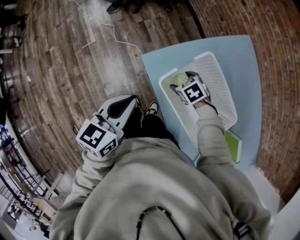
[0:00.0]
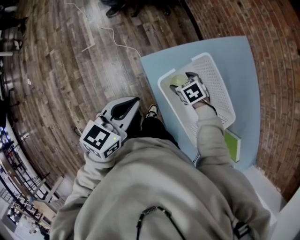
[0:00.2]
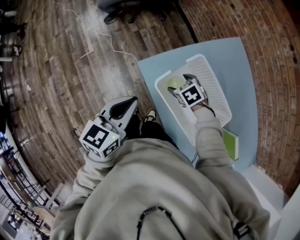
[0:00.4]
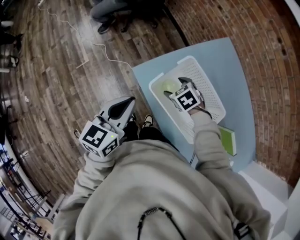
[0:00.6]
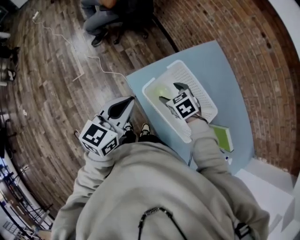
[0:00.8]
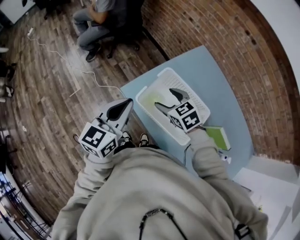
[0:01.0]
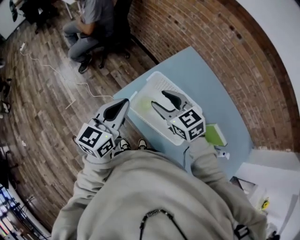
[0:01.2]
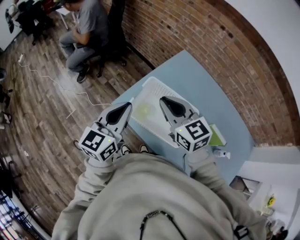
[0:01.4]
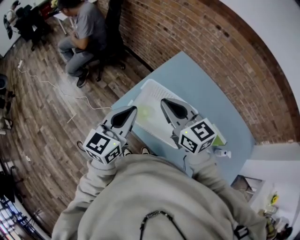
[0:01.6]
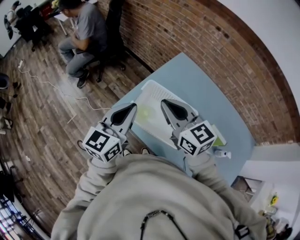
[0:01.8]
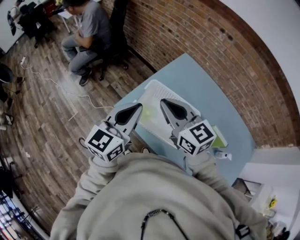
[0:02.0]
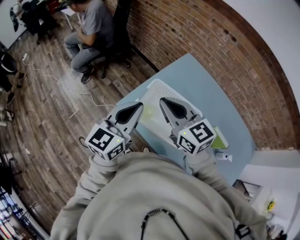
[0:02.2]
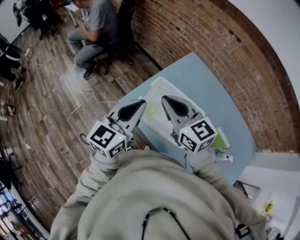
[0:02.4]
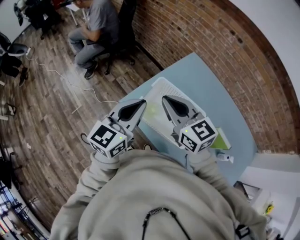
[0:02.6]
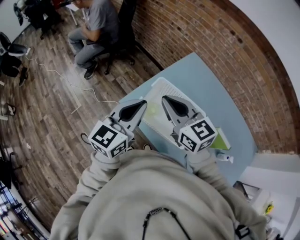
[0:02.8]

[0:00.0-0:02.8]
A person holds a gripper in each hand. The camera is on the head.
0:00.0 to 0:01.4: The left gripper travels upward and to the right by approximately 20 cm, and turns by some 30 degrees; the right gripper goes roughly 35 cm upward, tips its fingers upward by about 50 degrees, and closes its fingers.
0:01.4 to 0:02.8: The grippers stay close to where they were, moving slightly.

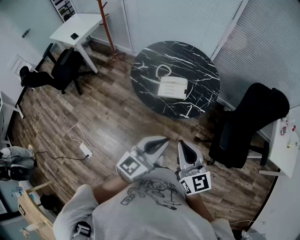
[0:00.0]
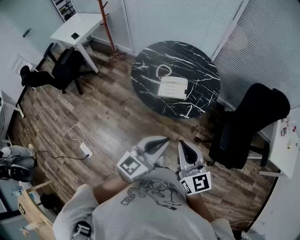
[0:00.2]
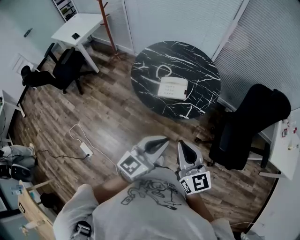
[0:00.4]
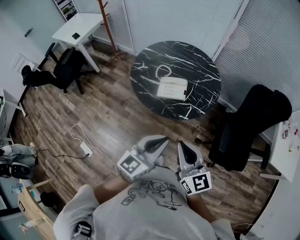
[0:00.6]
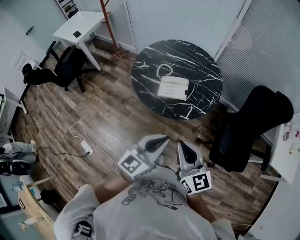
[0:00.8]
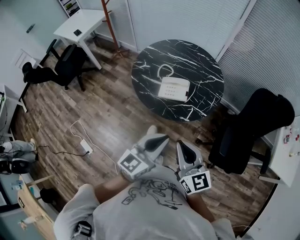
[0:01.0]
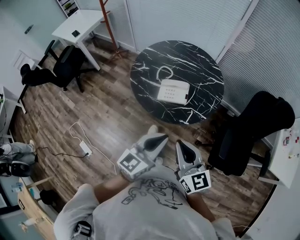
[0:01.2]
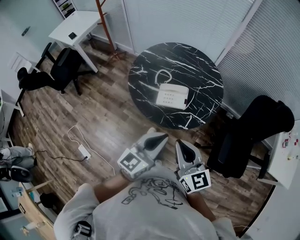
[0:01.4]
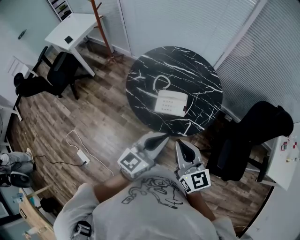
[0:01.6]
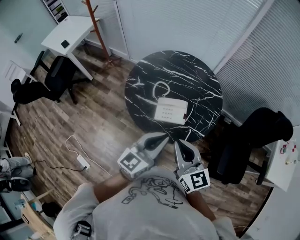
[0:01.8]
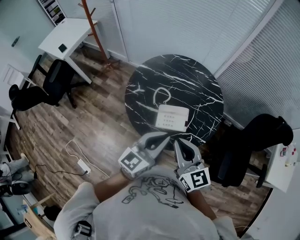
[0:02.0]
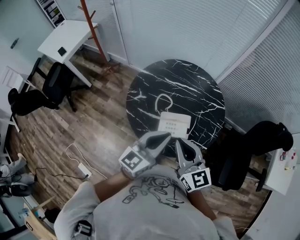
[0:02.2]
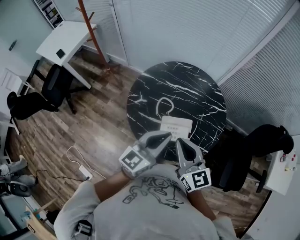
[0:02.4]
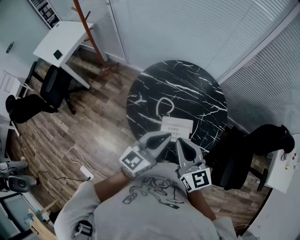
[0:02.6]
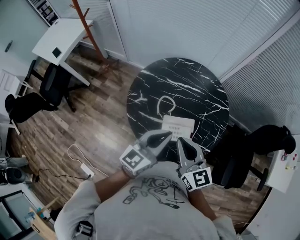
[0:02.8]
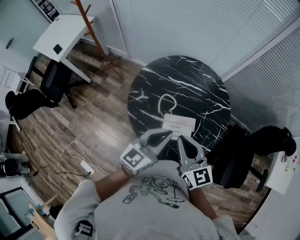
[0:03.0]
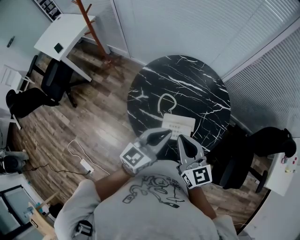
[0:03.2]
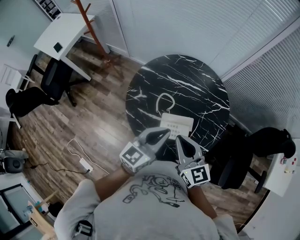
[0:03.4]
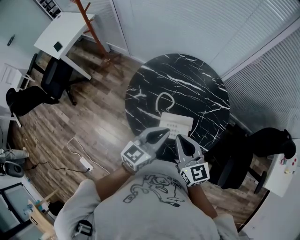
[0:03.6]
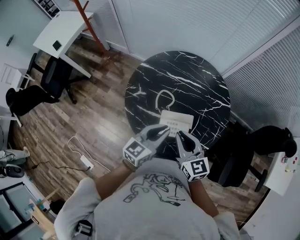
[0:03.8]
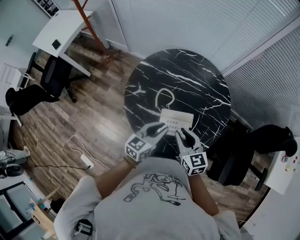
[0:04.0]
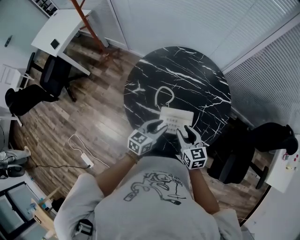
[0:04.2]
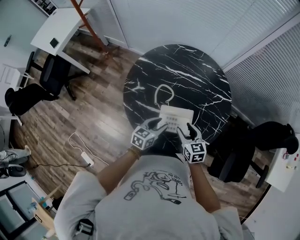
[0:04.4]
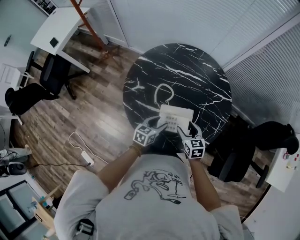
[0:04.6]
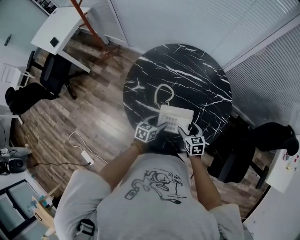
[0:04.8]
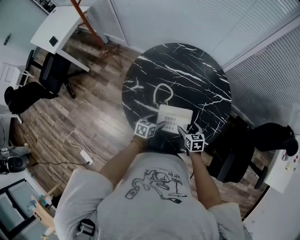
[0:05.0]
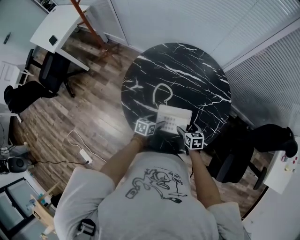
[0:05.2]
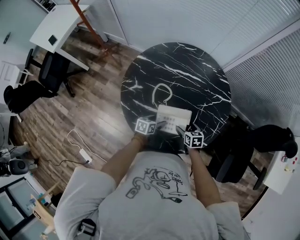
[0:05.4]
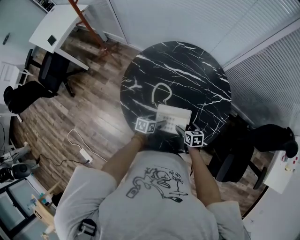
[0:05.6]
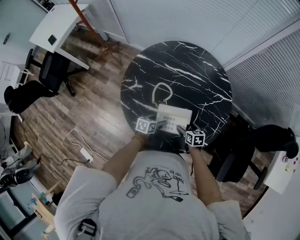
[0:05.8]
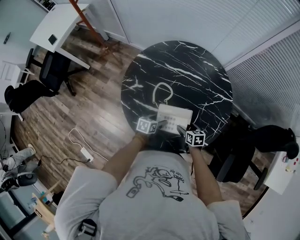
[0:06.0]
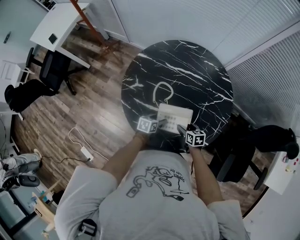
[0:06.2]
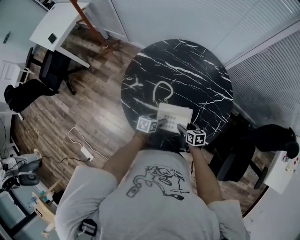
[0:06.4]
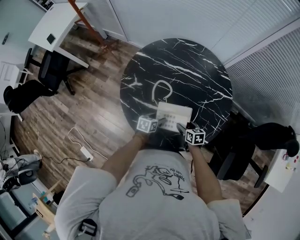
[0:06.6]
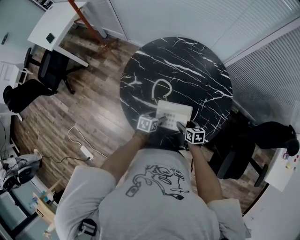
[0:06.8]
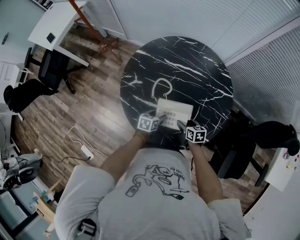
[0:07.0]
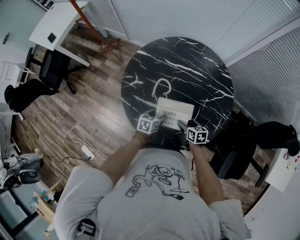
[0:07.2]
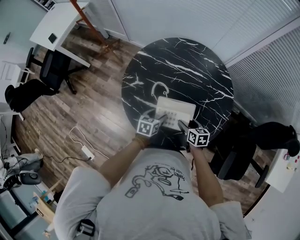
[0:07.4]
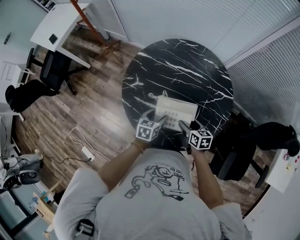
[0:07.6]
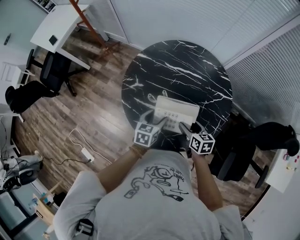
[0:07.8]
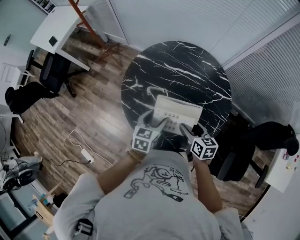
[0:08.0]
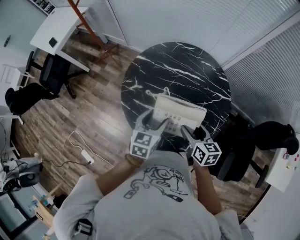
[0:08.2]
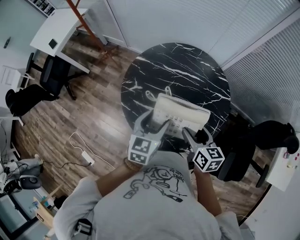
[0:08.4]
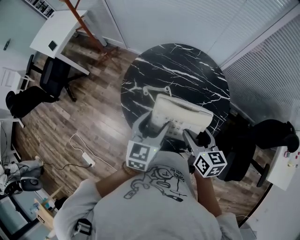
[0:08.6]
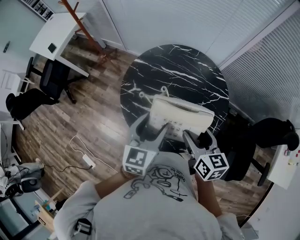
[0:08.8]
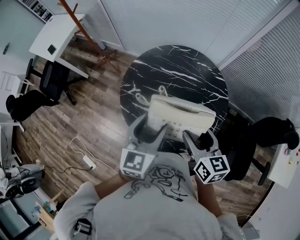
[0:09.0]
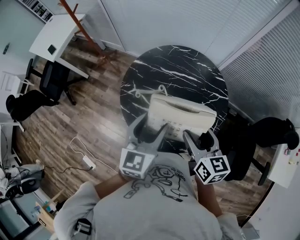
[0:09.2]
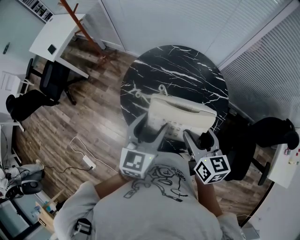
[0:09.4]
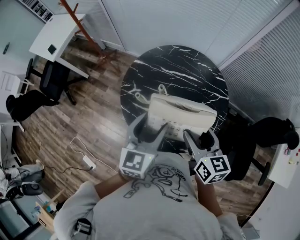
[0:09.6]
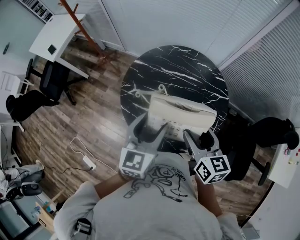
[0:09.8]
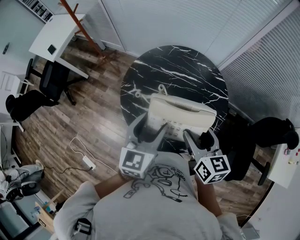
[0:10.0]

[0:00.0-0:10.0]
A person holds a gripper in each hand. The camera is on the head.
0:00.0 to 0:01.4: Both grippers travel together forward, about 10 cm.
0:01.4 to 0:02.8: The right gripper goes approximately 30 cm forward and to the left; the left gripper heads forward, covering about 30 cm.
0:02.8 to 0:04.2: The two grippers go approximately 20 cm downward. The right gripper rotates approximately 20 degrees, and opens up; the left gripper rotates some 20 degrees, and opens up.
0:04.2 to 0:05.8: Both grippers travel together downward, roughly 20 cm. The left gripper changes its angle by some 30 degrees, and opens its fingers, while the right gripper turns by approximately 30 degrees, and opens its fingers.
0:05.8 to 0:07.2: The grippers move only a little.
0:07.2 to 0:08.6: Both grippers move upward, some 30 cm. The right gripper changes its angle by roughly 20 degrees; the left gripper turns by about 30 degrees.
0:08.6 to 0:10.0: The grippers both shift upward by some 5 cm.

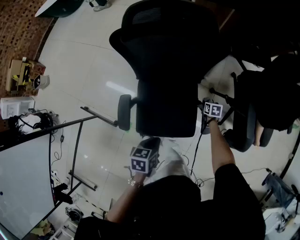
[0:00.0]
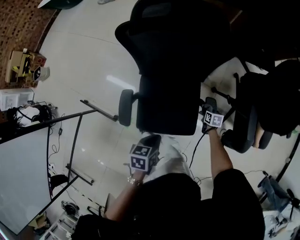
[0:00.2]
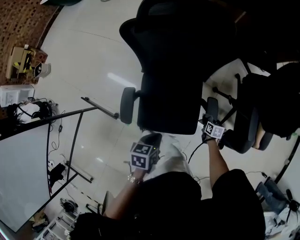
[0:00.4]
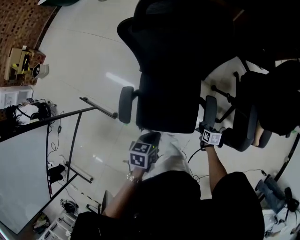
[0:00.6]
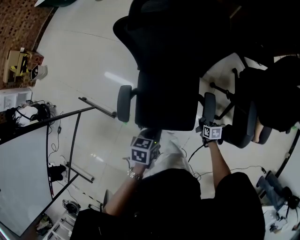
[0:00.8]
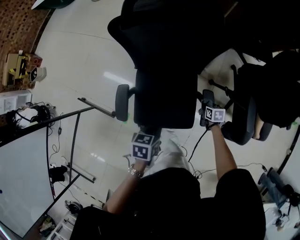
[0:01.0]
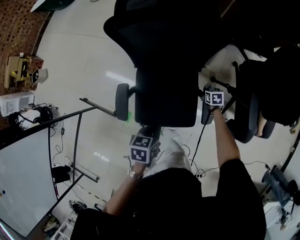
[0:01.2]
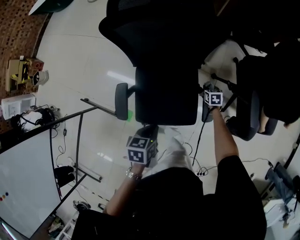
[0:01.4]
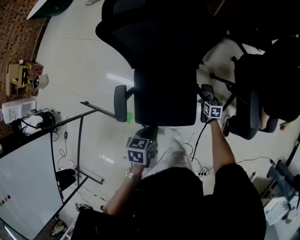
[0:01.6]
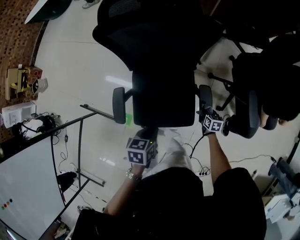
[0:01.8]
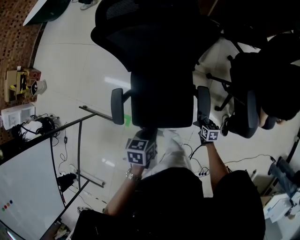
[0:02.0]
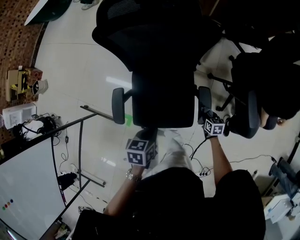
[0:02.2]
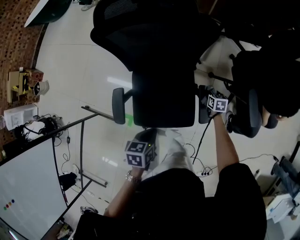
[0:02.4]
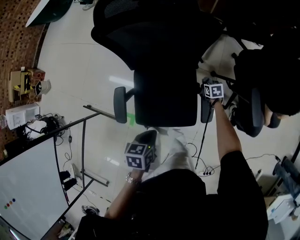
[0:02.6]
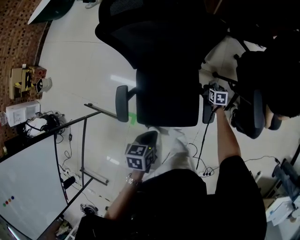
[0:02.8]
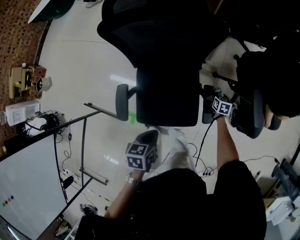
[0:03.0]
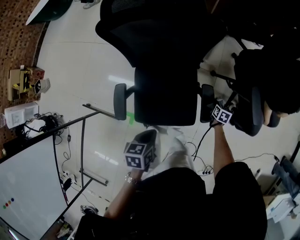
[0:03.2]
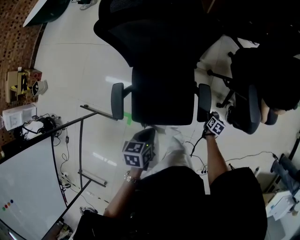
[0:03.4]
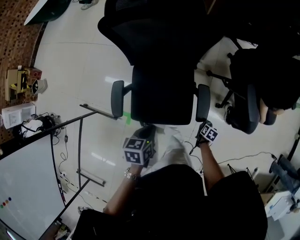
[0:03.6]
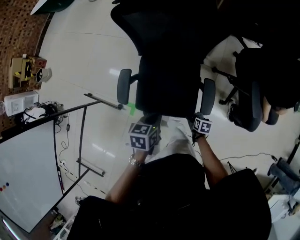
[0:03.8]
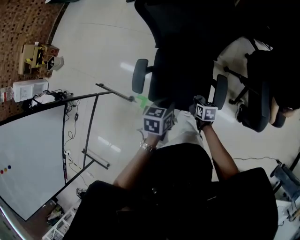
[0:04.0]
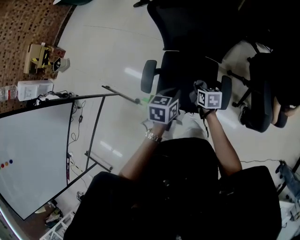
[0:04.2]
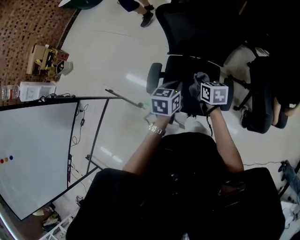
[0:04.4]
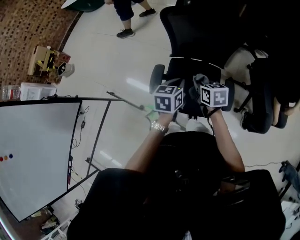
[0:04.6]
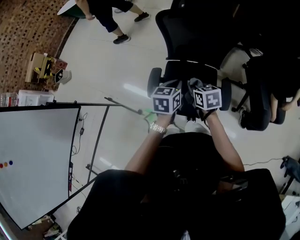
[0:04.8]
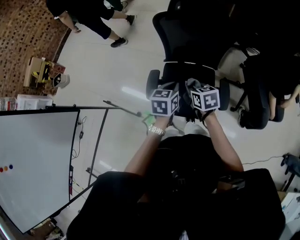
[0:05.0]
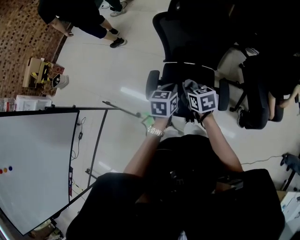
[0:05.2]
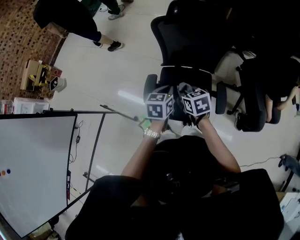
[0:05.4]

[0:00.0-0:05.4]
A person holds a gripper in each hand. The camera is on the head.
0:00.0 to 0:01.4: The right gripper travels backward and back again, approximately 15 cm each way.
0:01.4 to 0:02.8: The right gripper reaches about 20 cm backward, then returns.
0:02.8 to 0:04.0: The right gripper moves roughly 30 cm.
0:04.0 to 0:05.4: The left gripper goes about 10 cm upward and to the left, while the right gripper heads upward and to the left, covering some 30 cm, and changes its angle by about 20 degrees.

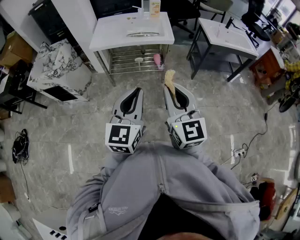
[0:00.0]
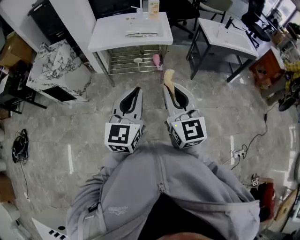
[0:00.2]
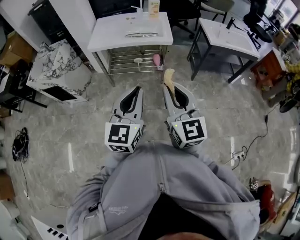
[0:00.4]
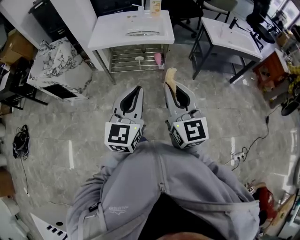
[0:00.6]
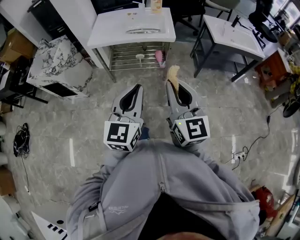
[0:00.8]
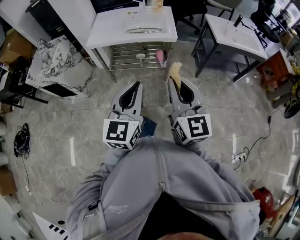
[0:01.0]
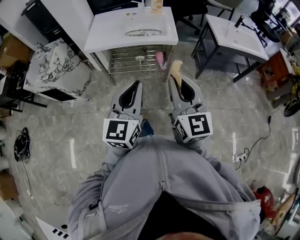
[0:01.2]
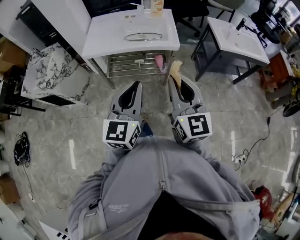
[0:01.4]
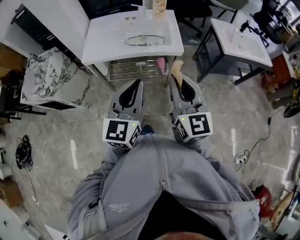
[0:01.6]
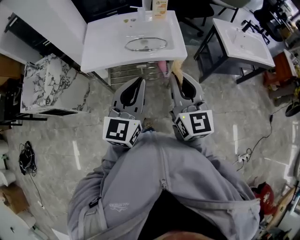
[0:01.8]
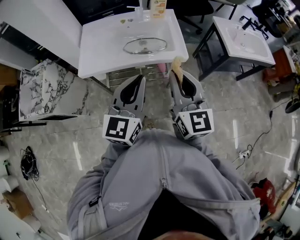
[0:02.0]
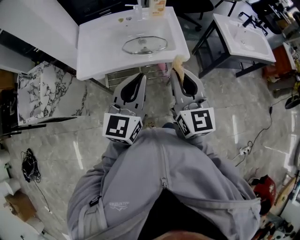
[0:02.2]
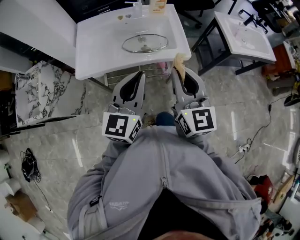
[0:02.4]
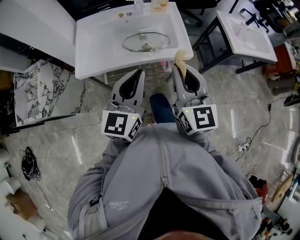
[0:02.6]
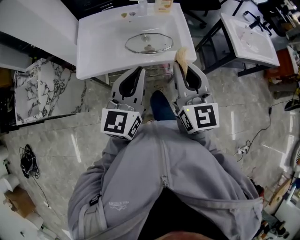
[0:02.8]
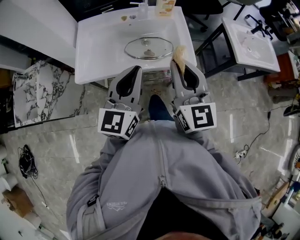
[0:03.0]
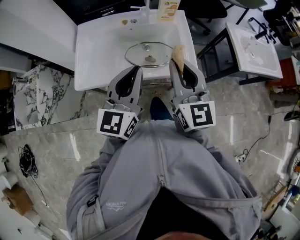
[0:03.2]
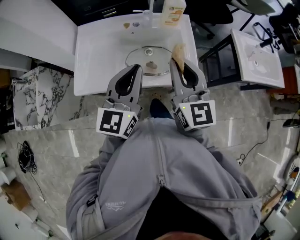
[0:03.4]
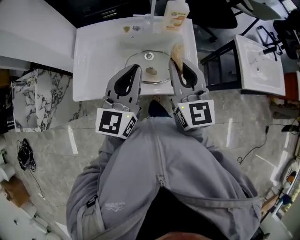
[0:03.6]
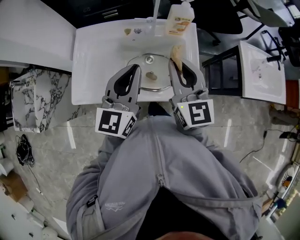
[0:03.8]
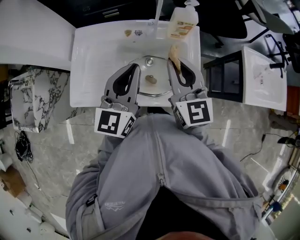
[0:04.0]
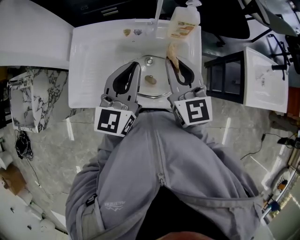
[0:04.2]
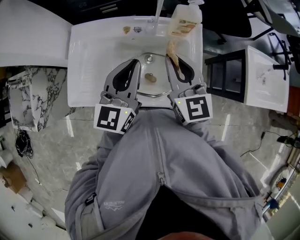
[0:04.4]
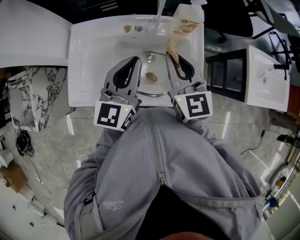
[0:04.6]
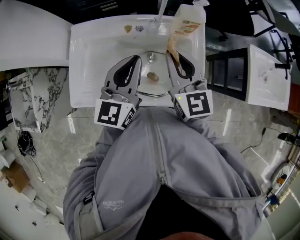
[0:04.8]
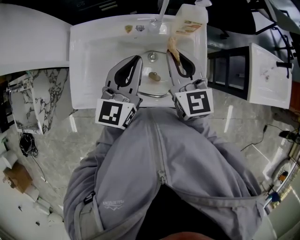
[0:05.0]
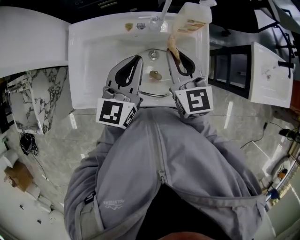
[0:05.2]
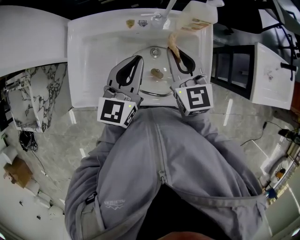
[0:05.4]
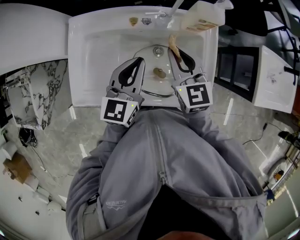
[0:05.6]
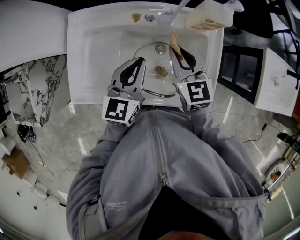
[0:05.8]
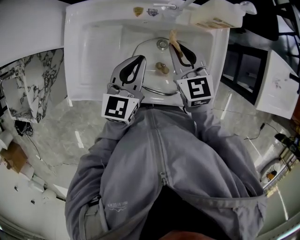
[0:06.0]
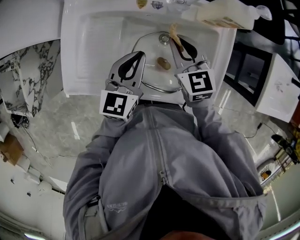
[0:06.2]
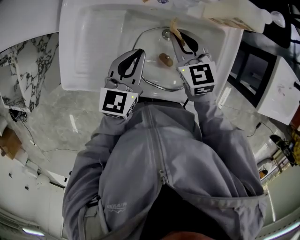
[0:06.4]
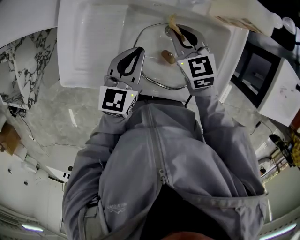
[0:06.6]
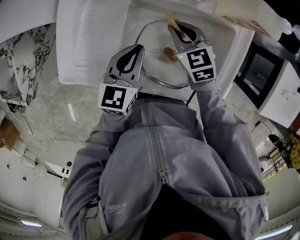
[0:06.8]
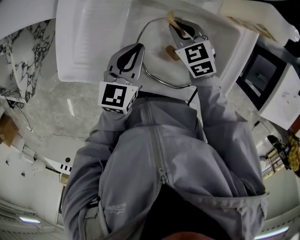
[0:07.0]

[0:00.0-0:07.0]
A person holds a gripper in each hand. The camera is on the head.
0:00.0 to 0:01.4: Both grippers move forward, about 20 cm.
0:01.4 to 0:02.8: The two grippers go roughly 25 cm forward.
0:02.8 to 0:04.2: The two grippers go about 30 cm forward.
0:04.2 to 0:05.6: The grippers both shift downward and forward by some 10 cm.
0:05.6 to 0:07.0: The left gripper shifts some 15 cm downward and to the left. Meanwhile the right gripper moves downward, roughly 20 cm, and swivels some 40 degrees.
